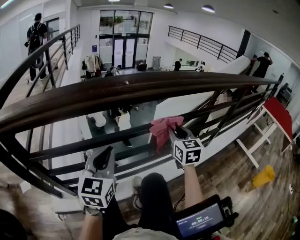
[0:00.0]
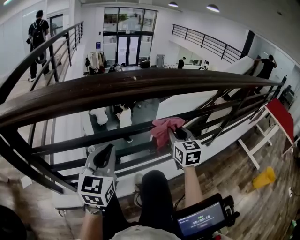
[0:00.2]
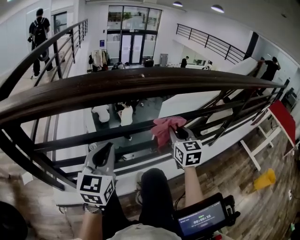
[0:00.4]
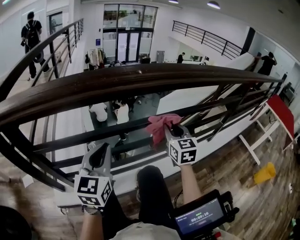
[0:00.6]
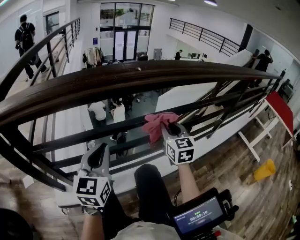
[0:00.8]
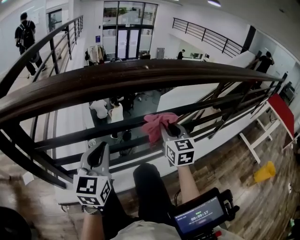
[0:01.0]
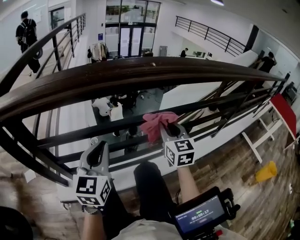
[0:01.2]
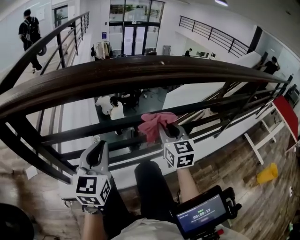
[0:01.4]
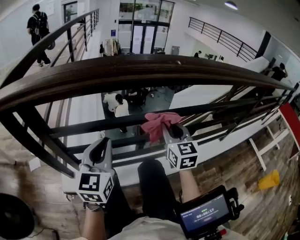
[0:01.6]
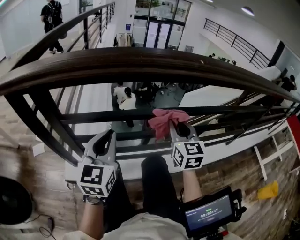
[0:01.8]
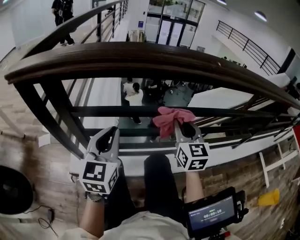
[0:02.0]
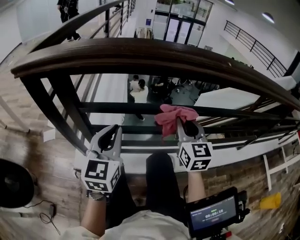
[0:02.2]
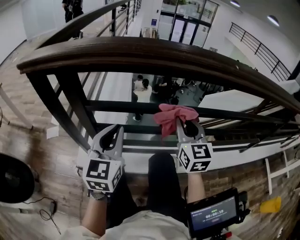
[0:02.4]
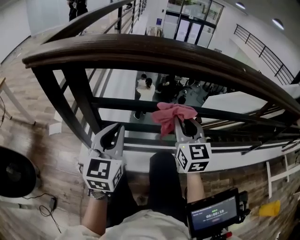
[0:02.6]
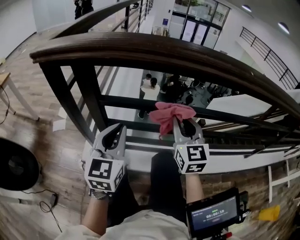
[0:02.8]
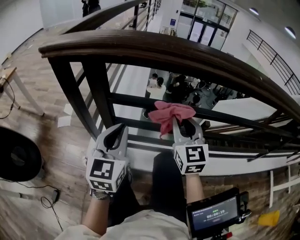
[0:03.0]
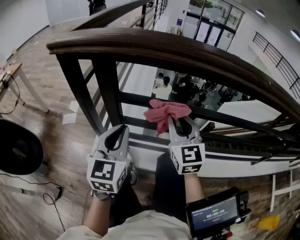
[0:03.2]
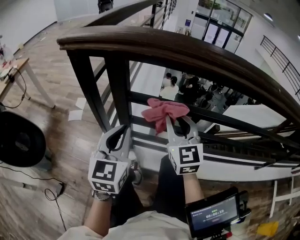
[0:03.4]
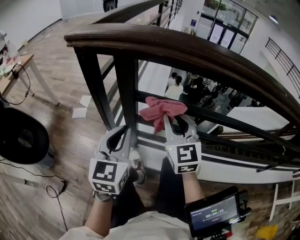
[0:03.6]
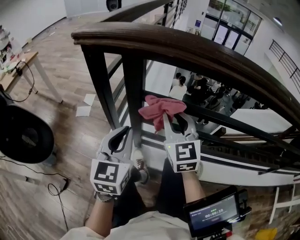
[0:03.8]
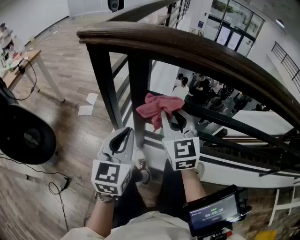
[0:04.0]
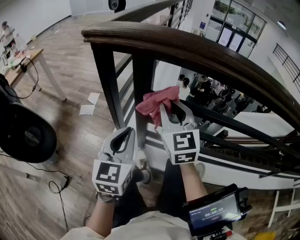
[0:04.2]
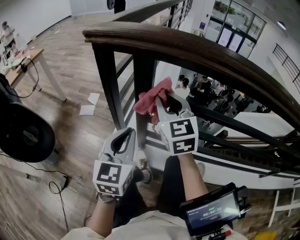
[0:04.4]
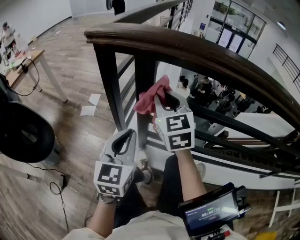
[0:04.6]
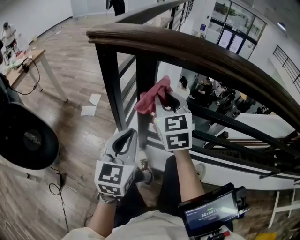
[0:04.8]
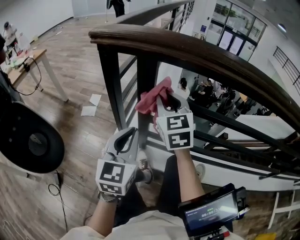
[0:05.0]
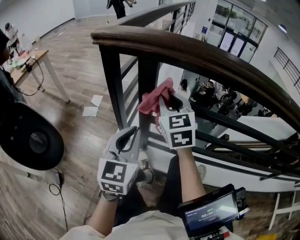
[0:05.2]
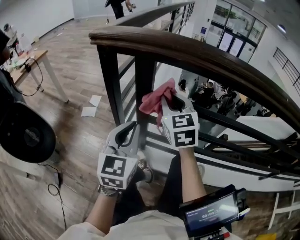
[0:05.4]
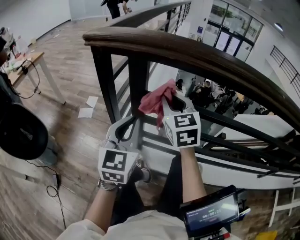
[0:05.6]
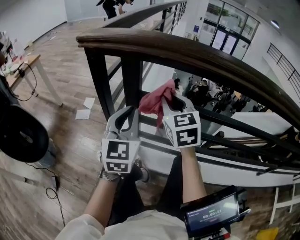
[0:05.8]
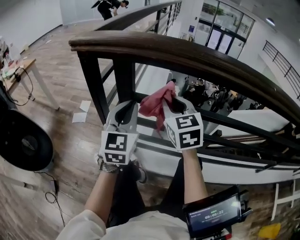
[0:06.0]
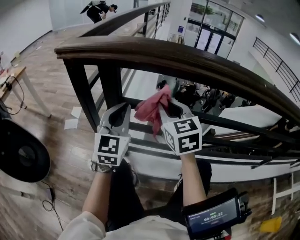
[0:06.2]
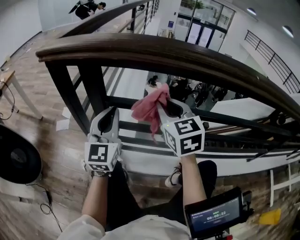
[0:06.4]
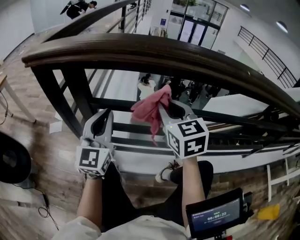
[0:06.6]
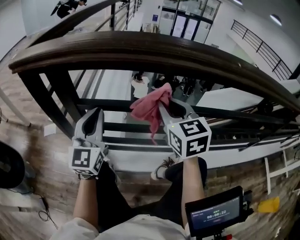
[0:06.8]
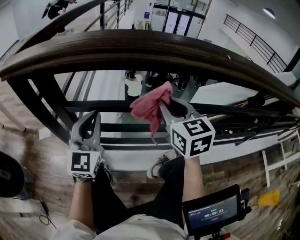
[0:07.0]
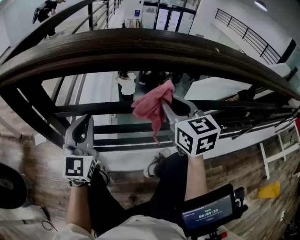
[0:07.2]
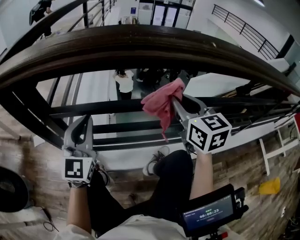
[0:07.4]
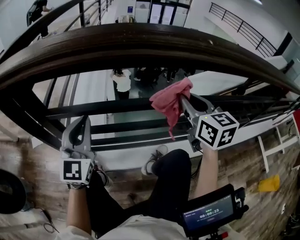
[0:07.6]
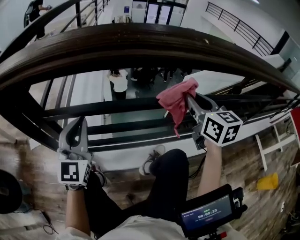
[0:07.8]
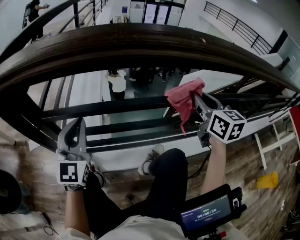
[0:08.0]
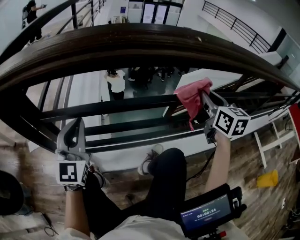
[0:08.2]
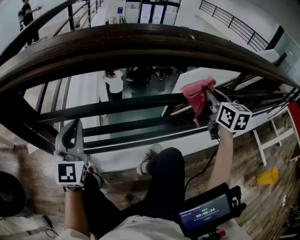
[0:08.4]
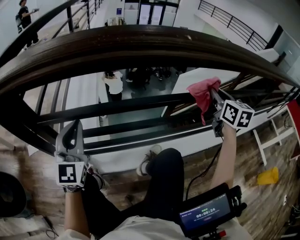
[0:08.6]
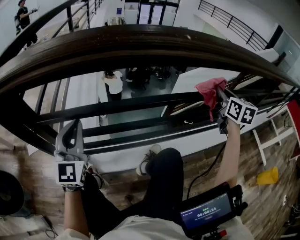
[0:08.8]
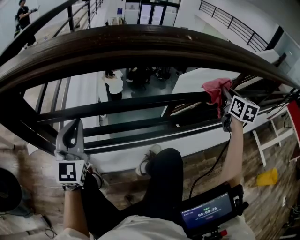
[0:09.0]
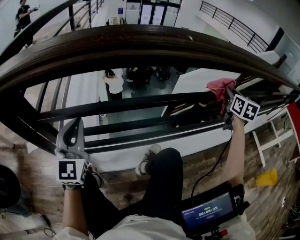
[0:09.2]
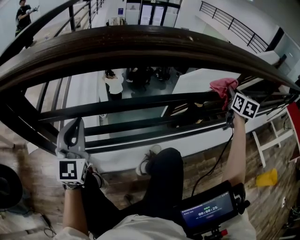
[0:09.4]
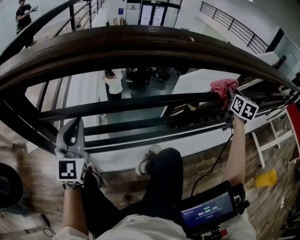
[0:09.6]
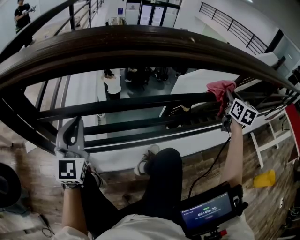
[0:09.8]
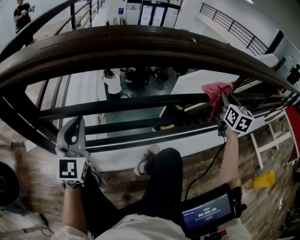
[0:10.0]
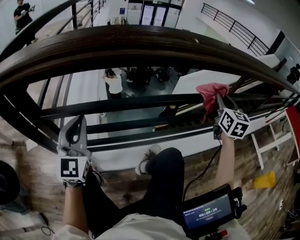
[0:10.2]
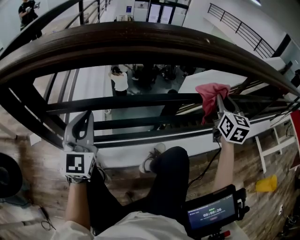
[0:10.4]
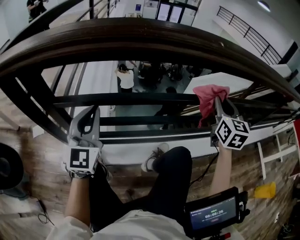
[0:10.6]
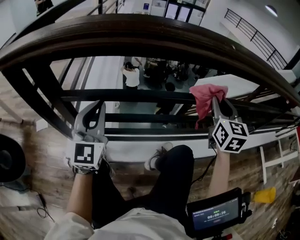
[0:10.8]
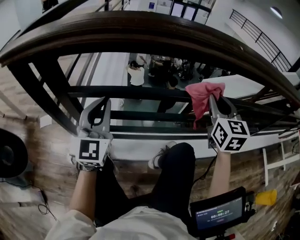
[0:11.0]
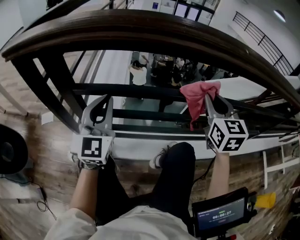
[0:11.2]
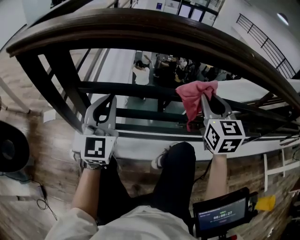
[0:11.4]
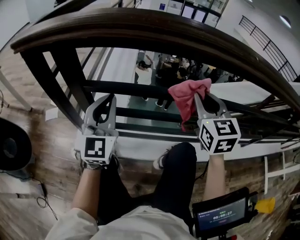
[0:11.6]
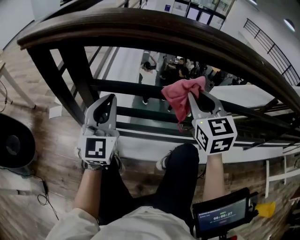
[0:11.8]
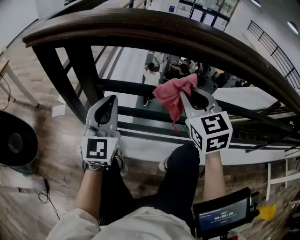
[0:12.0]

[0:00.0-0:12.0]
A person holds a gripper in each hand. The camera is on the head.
0:00.0 to 0:01.6: The grippers both shift to the left by about 15 cm.
0:01.6 to 0:03.0: Both grippers travel together to the left, some 15 cm.
0:03.0 to 0:04.4: The left gripper moves to the left, some 10 cm, while the right gripper is displaced to the left by about 20 cm.
0:04.4 to 0:06.0: The right gripper is displaced to the right by roughly 10 cm. The left gripper goes roughly 10 cm forward and to the right.
0:06.0 to 0:07.6: The right gripper is displaced to the right by approximately 30 cm, and rotates some 20 degrees, while the left gripper goes roughly 10 cm to the right.
0:07.6 to 0:09.0: The right gripper goes approximately 25 cm to the right, and turns by about 30 degrees.
0:09.0 to 0:10.4: The right gripper shifts some 10 cm to the left and backward.
0:10.4 to 0:12.0: The right gripper goes roughly 35 cm to the left, and changes its angle by roughly 40 degrees. The left gripper travels to the left by some 10 cm.

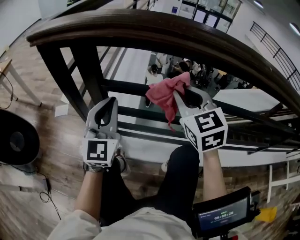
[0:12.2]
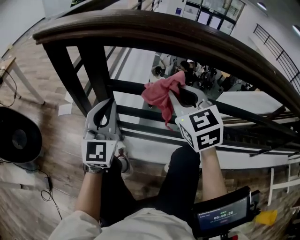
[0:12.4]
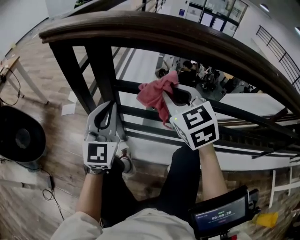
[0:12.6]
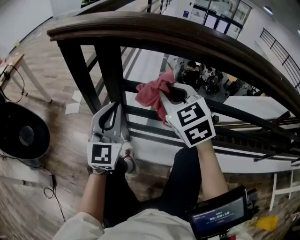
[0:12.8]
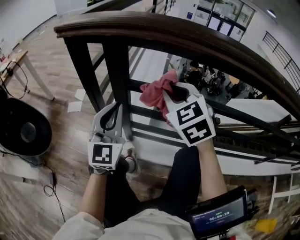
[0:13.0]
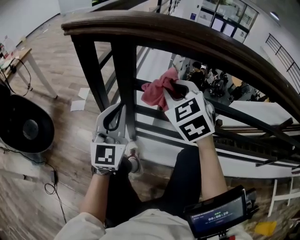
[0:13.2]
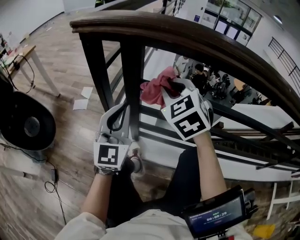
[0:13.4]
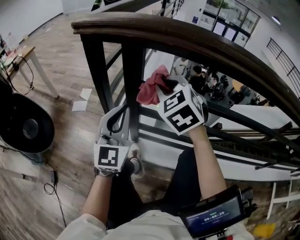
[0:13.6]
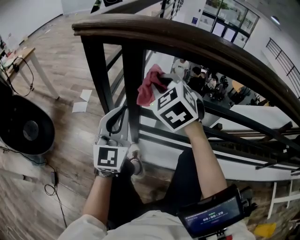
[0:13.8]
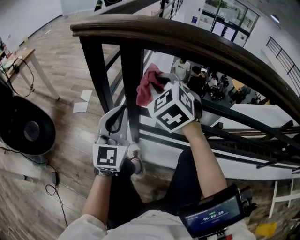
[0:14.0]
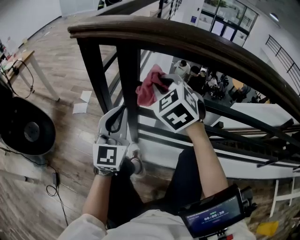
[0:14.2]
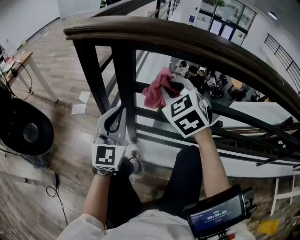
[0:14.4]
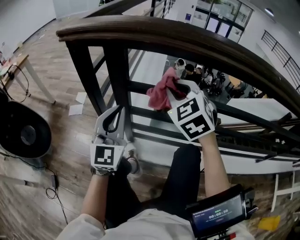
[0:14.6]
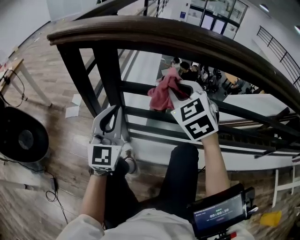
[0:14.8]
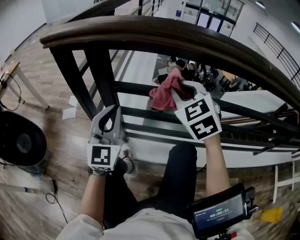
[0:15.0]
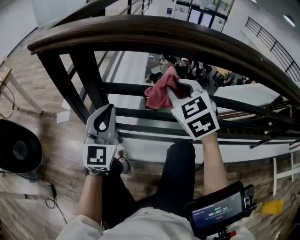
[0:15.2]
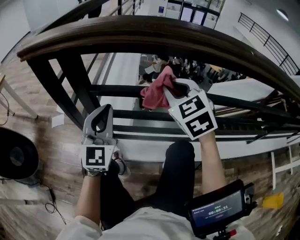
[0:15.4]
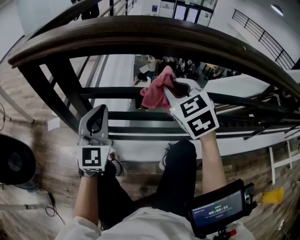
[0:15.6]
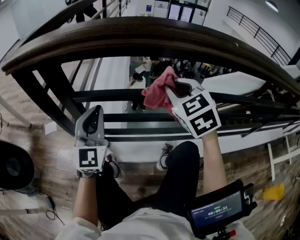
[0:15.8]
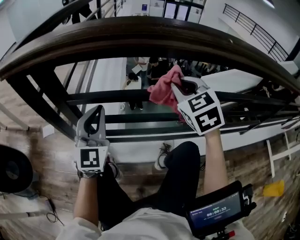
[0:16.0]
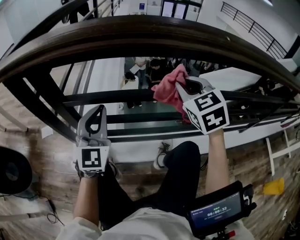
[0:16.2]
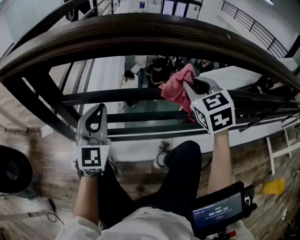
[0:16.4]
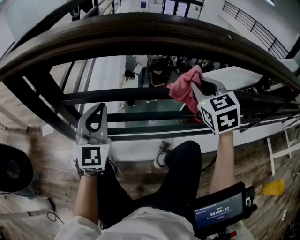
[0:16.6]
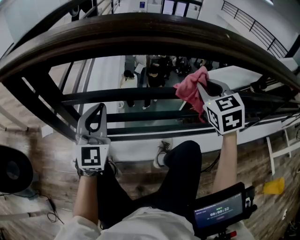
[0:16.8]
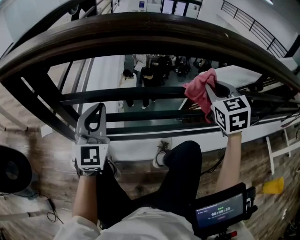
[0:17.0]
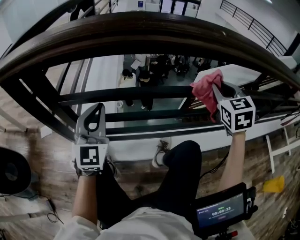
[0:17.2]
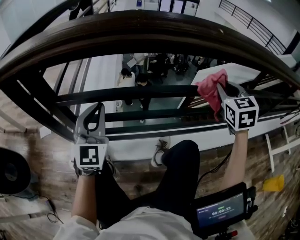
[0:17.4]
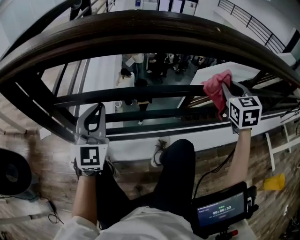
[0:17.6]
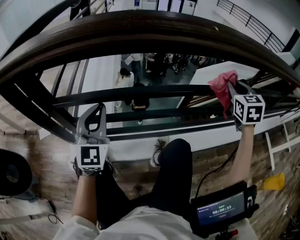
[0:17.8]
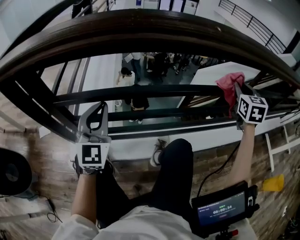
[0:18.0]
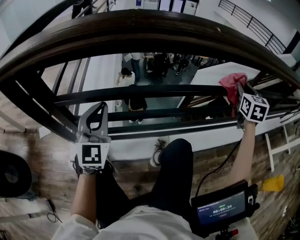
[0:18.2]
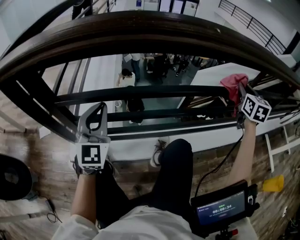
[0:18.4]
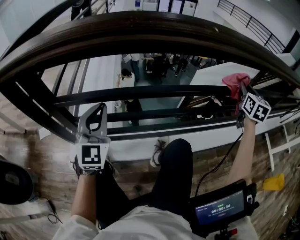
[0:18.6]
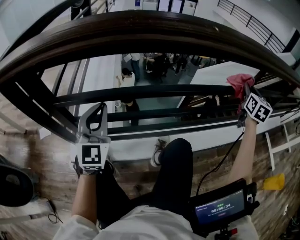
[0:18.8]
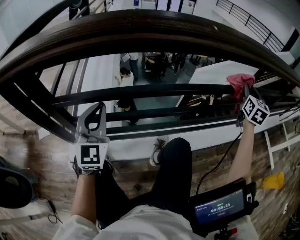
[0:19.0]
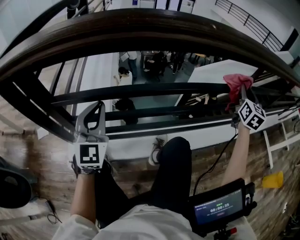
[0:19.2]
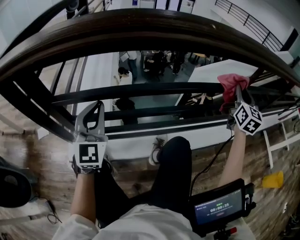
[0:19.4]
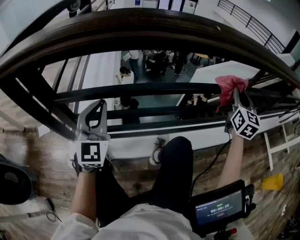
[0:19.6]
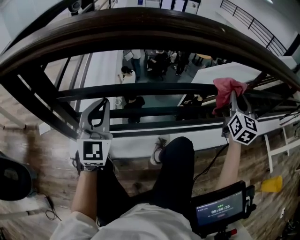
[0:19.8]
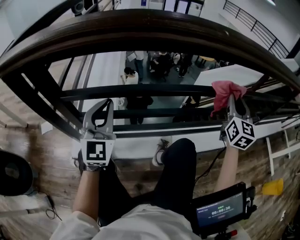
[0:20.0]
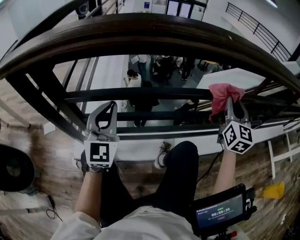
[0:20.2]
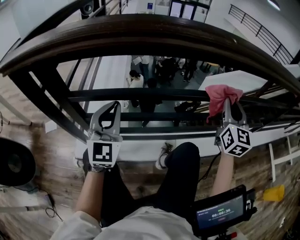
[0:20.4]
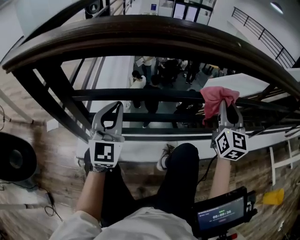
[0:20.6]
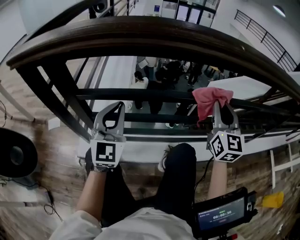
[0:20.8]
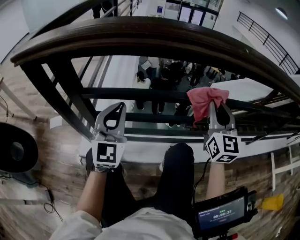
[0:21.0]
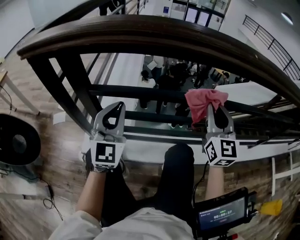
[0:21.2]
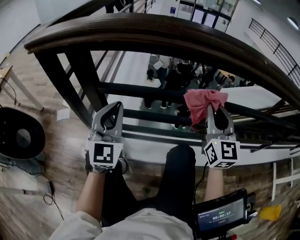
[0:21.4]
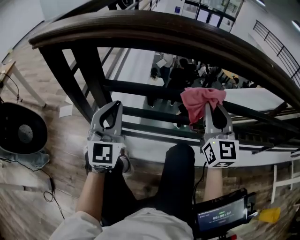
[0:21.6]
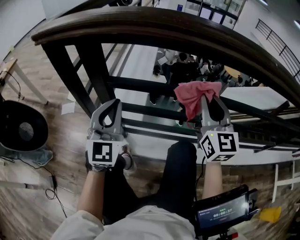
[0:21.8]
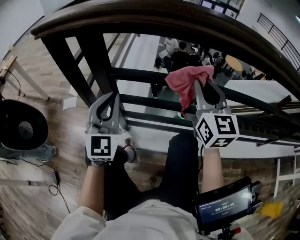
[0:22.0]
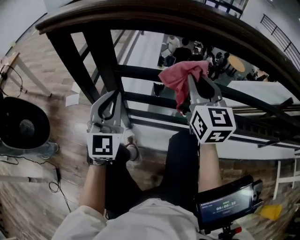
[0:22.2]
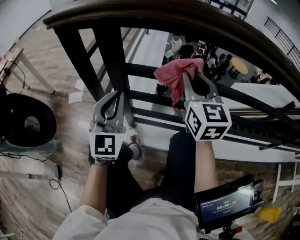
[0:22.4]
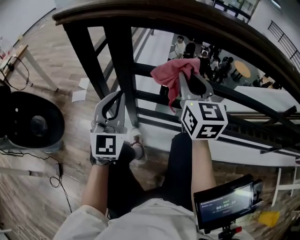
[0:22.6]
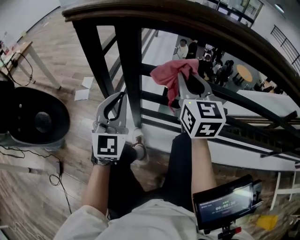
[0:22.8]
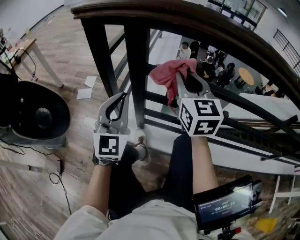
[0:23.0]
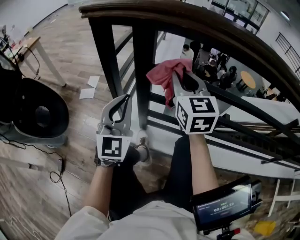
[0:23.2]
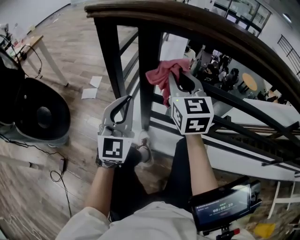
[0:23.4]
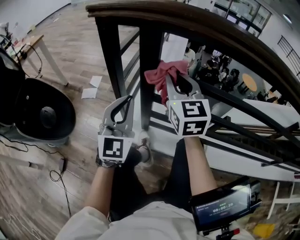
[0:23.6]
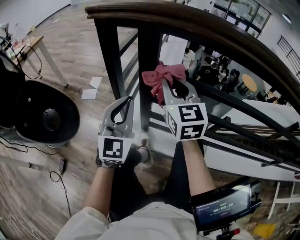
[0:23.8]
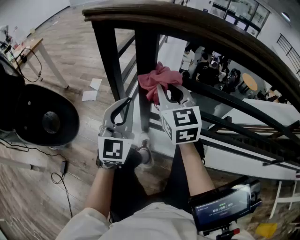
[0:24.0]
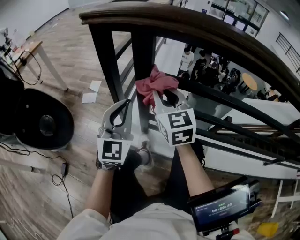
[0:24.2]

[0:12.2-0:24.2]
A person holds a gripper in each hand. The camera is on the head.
0:12.2 to 0:13.8: The left gripper goes approximately 10 cm to the left. Meanwhile the right gripper moves to the left, roughly 20 cm, and swivels some 30 degrees.
0:13.8 to 0:15.2: The left gripper moves to the right, approximately 5 cm. The right gripper shifts some 20 cm to the right.
0:15.2 to 0:16.6: The right gripper moves to the right, about 20 cm, while the left gripper shifts approximately 10 cm to the right.
0:16.6 to 0:18.2: The right gripper moves to the right, roughly 25 cm, and swivels some 30 degrees.
0:18.2 to 0:19.8: The right gripper shifts approximately 5 cm backward.
0:19.8 to 0:21.2: The left gripper ends up roughly 5 cm from where it was. The right gripper is displaced to the left by approximately 20 cm, and rotates roughly 20 degrees.
0:21.2 to 0:22.6: The right gripper moves to the left, about 25 cm, and rotates roughly 20 degrees, while the left gripper shifts roughly 15 cm to the left.
0:22.6 to 0:24.2: The right gripper heads to the left and downward, covering about 15 cm.
